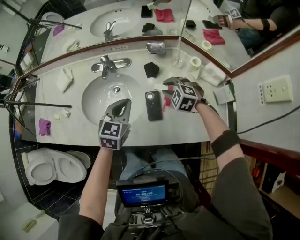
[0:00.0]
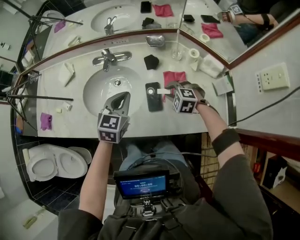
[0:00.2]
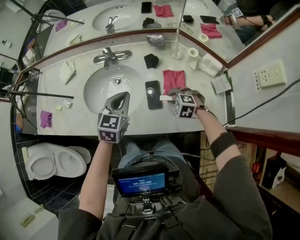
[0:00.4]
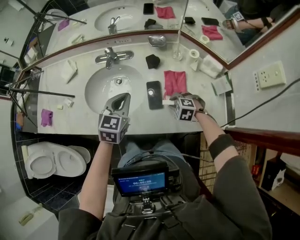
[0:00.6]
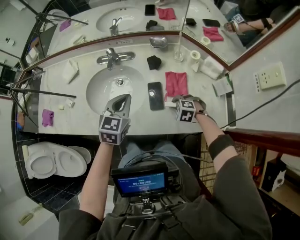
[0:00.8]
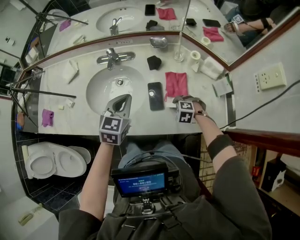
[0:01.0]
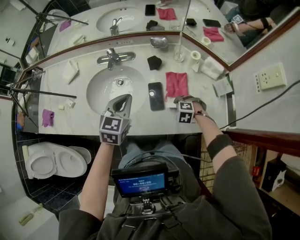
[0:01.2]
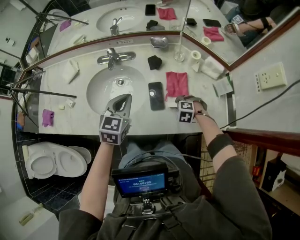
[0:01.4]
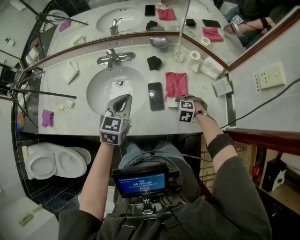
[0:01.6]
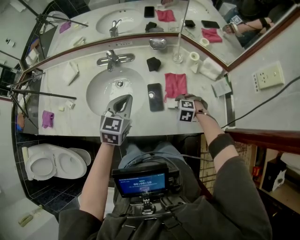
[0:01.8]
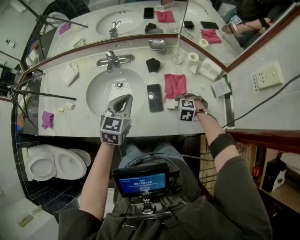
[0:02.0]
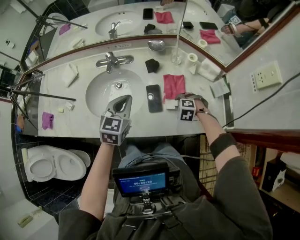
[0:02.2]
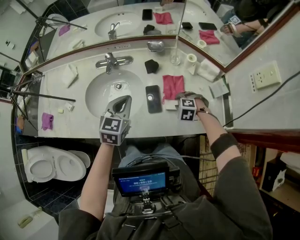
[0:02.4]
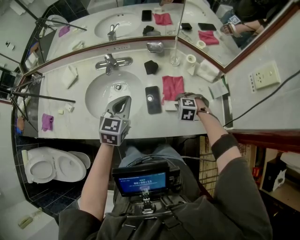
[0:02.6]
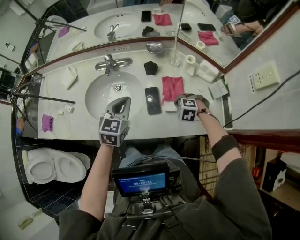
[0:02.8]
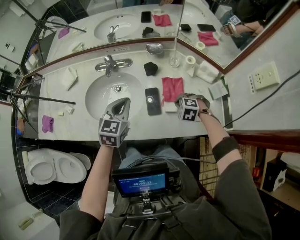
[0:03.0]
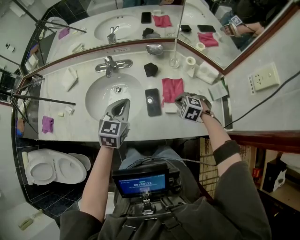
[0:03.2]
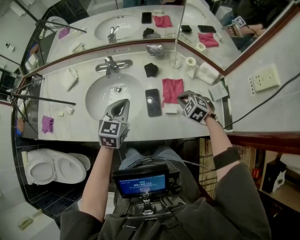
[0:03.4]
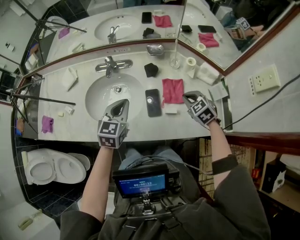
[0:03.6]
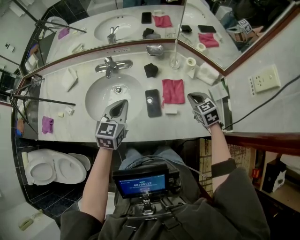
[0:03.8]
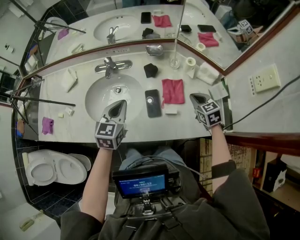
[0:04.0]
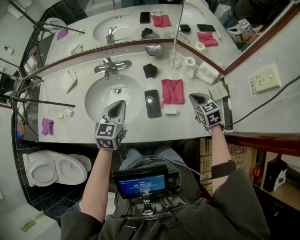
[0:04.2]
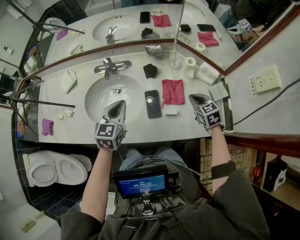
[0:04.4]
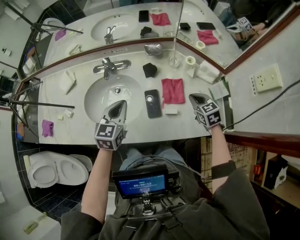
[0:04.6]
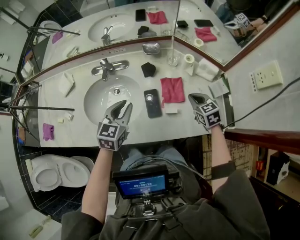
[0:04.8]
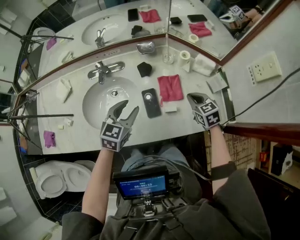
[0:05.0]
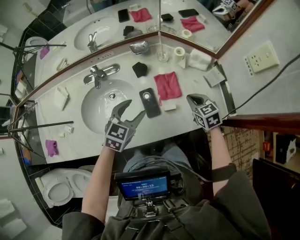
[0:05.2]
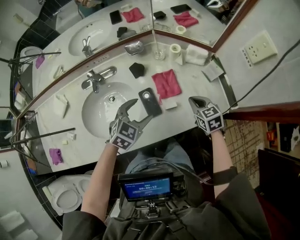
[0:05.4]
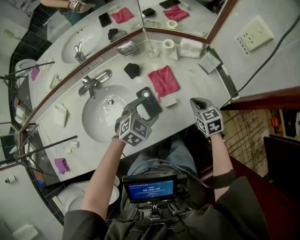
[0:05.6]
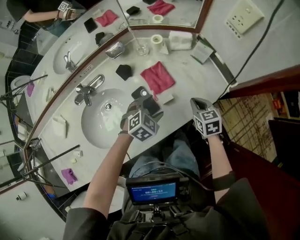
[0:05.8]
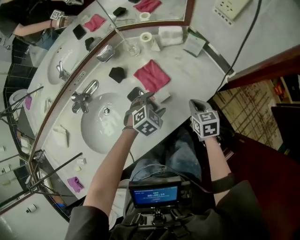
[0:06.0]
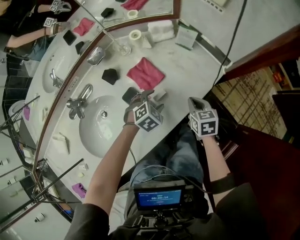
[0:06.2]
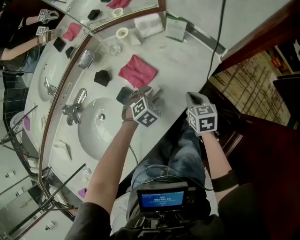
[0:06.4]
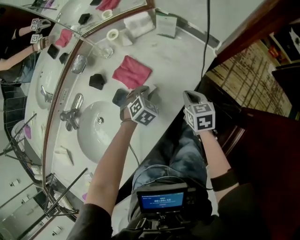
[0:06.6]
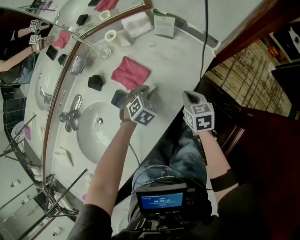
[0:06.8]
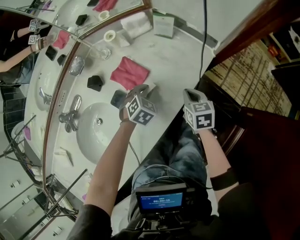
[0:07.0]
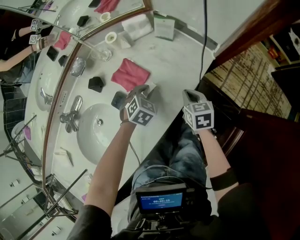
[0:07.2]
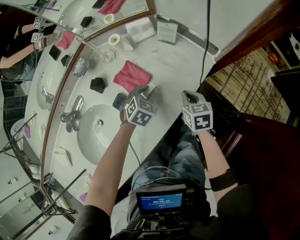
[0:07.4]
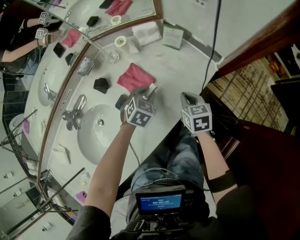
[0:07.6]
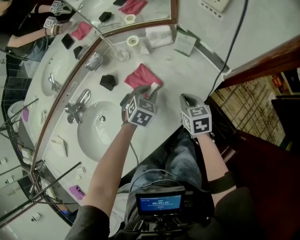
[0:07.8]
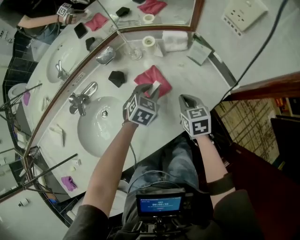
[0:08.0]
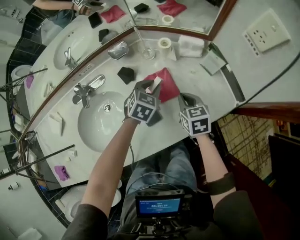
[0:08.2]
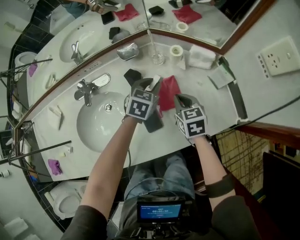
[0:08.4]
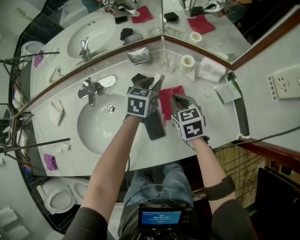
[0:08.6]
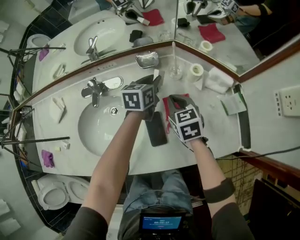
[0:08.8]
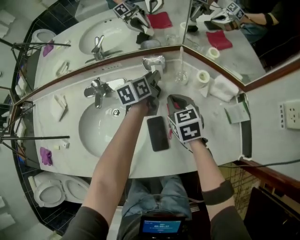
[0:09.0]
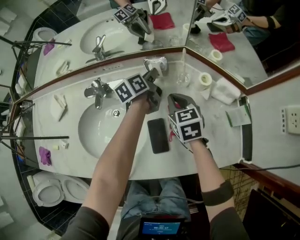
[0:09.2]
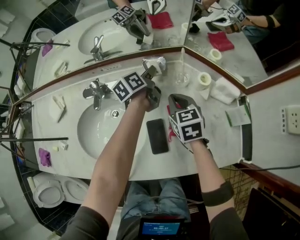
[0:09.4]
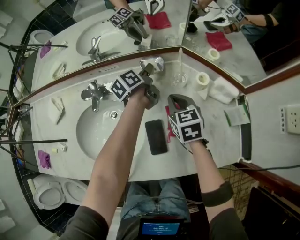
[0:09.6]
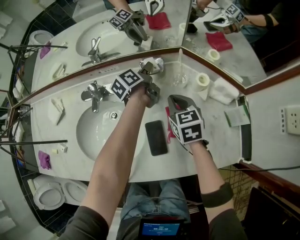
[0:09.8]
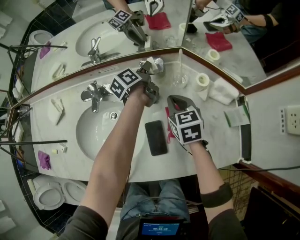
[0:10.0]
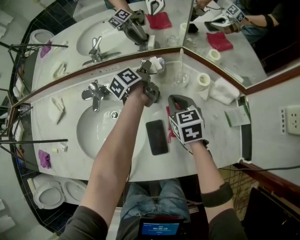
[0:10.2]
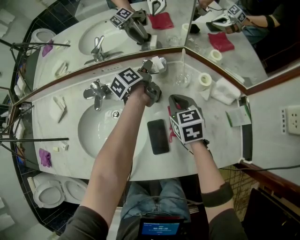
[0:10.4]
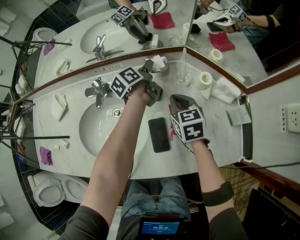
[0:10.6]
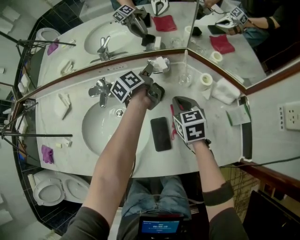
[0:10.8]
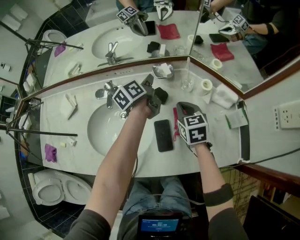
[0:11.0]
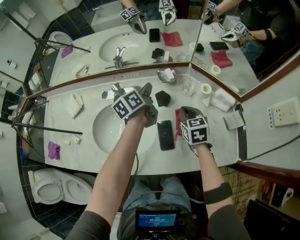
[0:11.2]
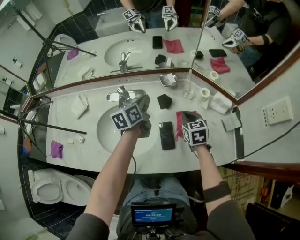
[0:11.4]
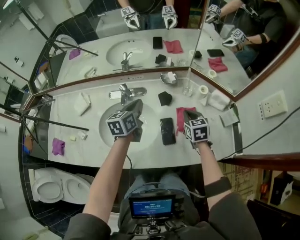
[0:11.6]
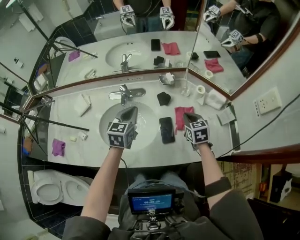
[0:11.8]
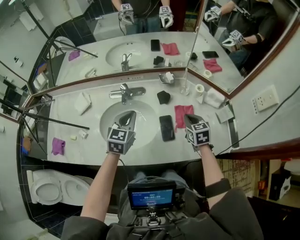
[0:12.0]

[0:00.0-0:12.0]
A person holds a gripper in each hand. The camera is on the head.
0:00.0 to 0:01.6: The right gripper moves roughly 20 cm, and turns by approximately 20 degrees, while the left gripper changes place by approximately 5 cm.
0:01.6 to 0:03.0: The right gripper travels upward by some 5 cm, and closes up.
0:03.0 to 0:04.4: The right gripper travels upward and to the right by about 10 cm, and twists about 50 degrees clockwise, seen from behind.
0:04.4 to 0:06.0: The right gripper moves roughly 20 cm, and rolls clockwise, seen from behind, by some 40 degrees; the left gripper ends up about 25 cm from where it was, points its fingers some 30 degrees further downward, and opens.
0:06.0 to 0:07.6: The left gripper is displaced forward by some 5 cm, moves approximately 10 cm downward and comes back, and closes.
0:07.6 to 0:09.0: The right gripper ends up approximately 35 cm from where it was, and rotates roughly 50 degrees; the left gripper changes place by roughly 35 cm, and rolls counterclockwise, seen from behind, by about 80 degrees.
0:09.0 to 0:10.4: The left gripper heads forward, covering approximately 5 cm, and changes its angle by approximately 30 degrees.
0:10.4 to 0:12.0: The right gripper goes about 15 cm backward and upward. Meanwhile the left gripper moves backward, upward and to the left, some 35 cm, rotates around the line of its fingers by about 70 degrees, clockwise from behind, and closes its fingers.

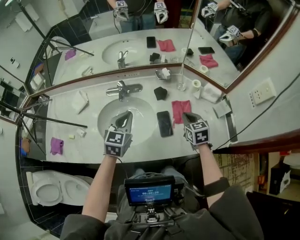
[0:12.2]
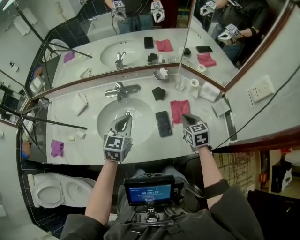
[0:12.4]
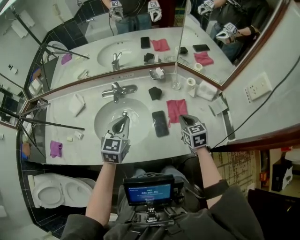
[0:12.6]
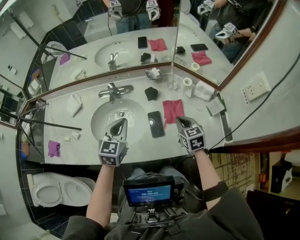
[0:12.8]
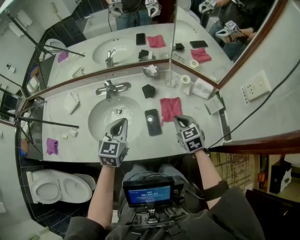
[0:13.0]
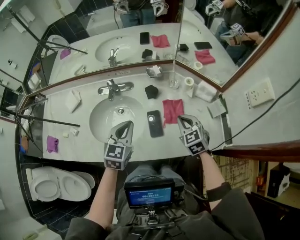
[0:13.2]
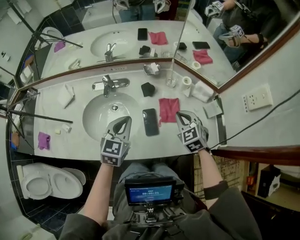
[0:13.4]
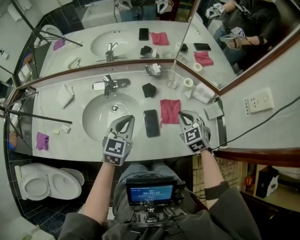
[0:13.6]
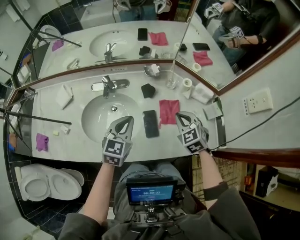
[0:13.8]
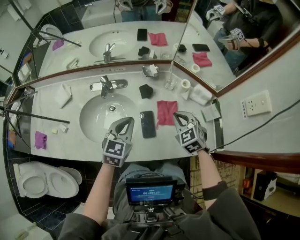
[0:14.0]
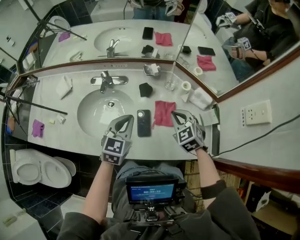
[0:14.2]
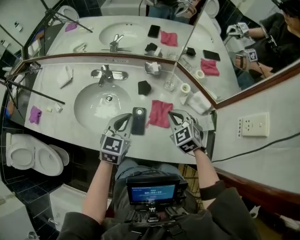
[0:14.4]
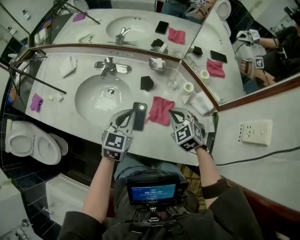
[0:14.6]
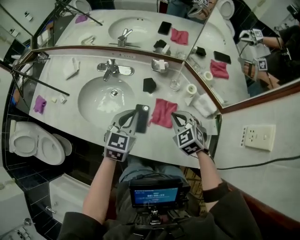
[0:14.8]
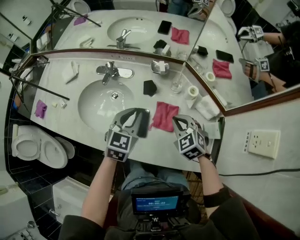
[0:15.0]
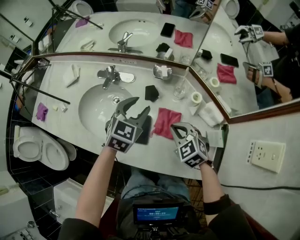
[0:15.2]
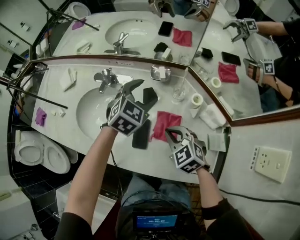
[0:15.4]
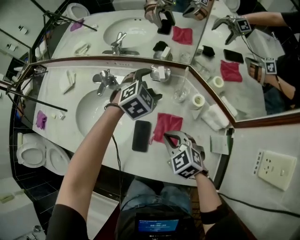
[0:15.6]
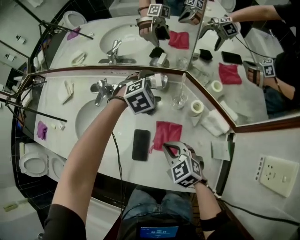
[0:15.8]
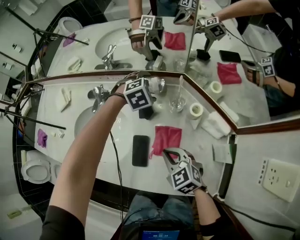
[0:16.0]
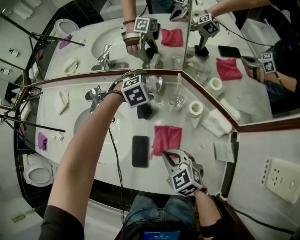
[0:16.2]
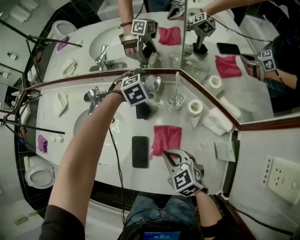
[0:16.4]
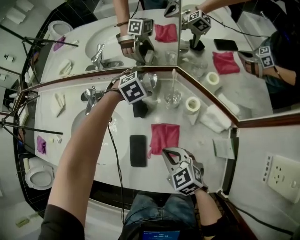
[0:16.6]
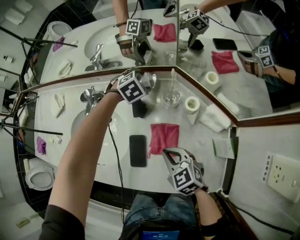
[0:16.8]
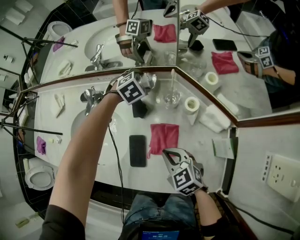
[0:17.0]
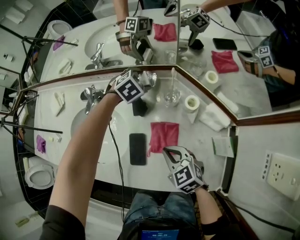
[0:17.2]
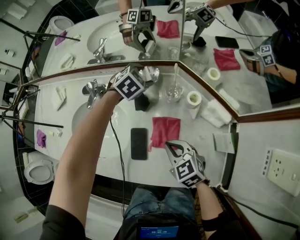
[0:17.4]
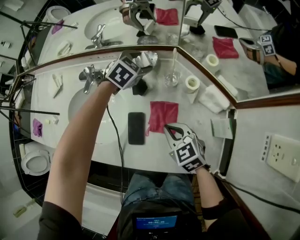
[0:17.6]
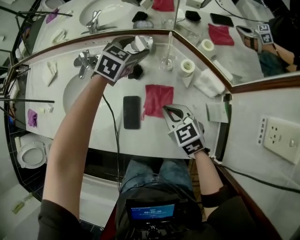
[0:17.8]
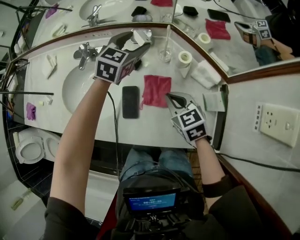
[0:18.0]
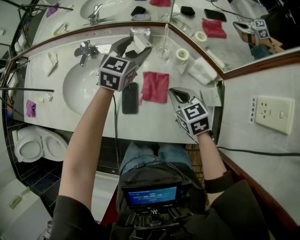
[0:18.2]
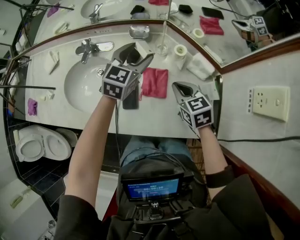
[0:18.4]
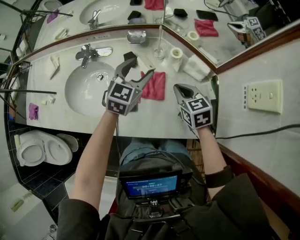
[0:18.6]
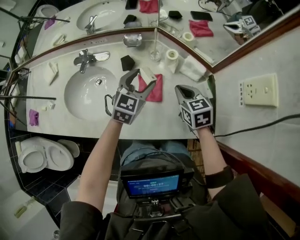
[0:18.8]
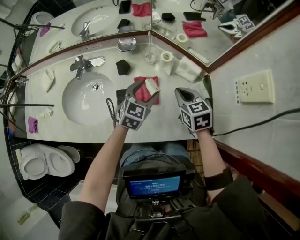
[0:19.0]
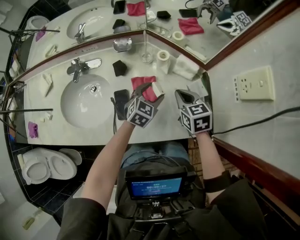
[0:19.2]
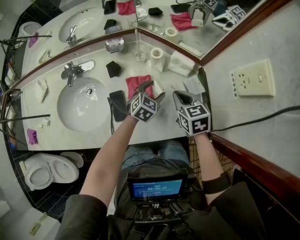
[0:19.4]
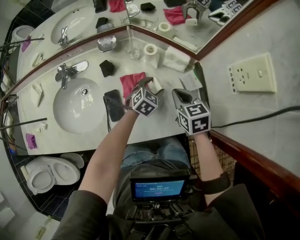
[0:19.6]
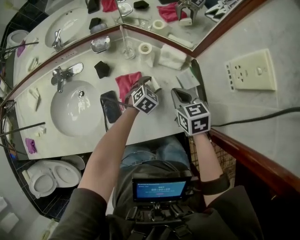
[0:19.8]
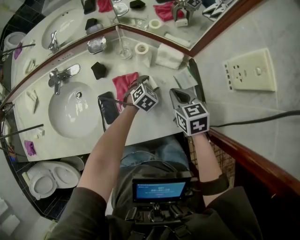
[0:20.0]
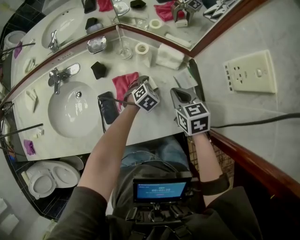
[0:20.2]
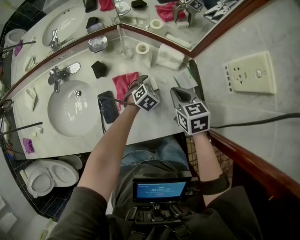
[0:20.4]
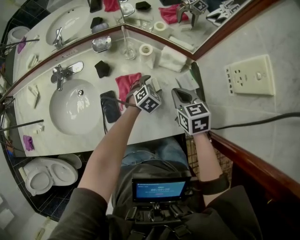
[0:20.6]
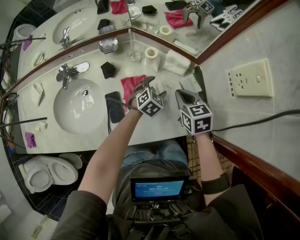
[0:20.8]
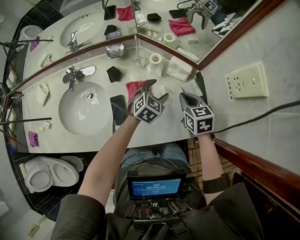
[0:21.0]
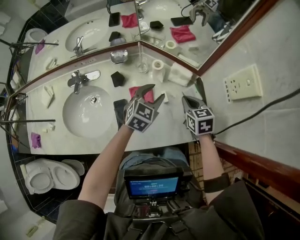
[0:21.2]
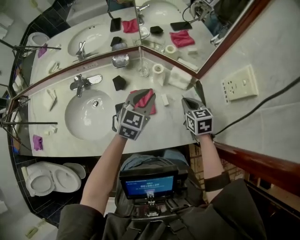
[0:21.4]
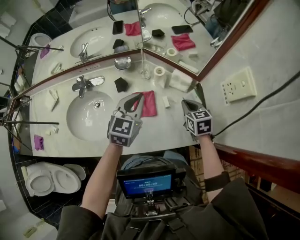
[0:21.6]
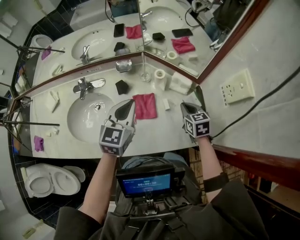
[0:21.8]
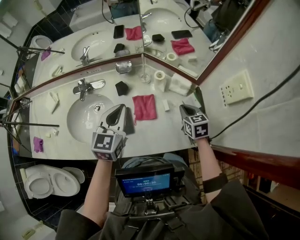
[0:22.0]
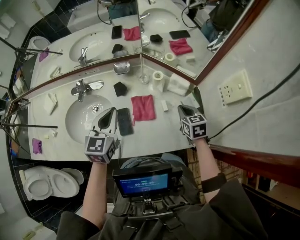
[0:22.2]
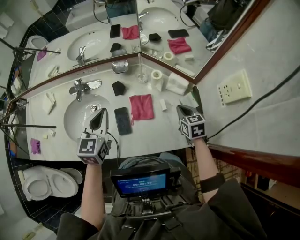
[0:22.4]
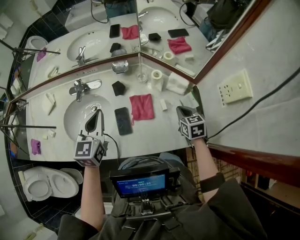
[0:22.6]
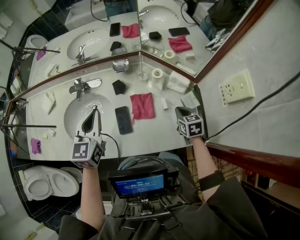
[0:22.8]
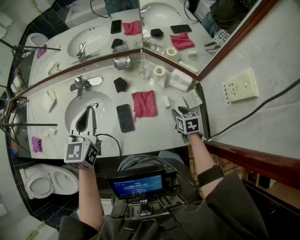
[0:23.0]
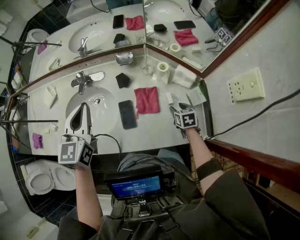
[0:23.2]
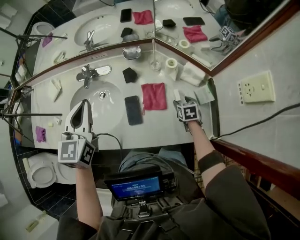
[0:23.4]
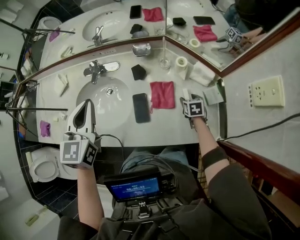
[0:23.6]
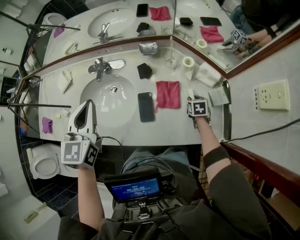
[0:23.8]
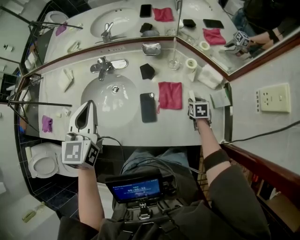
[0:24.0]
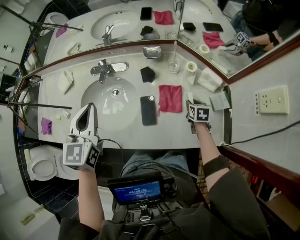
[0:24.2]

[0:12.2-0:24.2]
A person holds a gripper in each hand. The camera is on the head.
0:12.2 to 0:13.8: The right gripper turns by about 30 degrees. The left gripper goes approximately 10 cm to the right.
0:13.8 to 0:15.2: The left gripper travels to the right and forward by roughly 15 cm, and opens its fingers; the right gripper changes place by approximately 5 cm, and rotates roughly 30 degrees.
0:15.2 to 0:16.6: The left gripper is displaced forward, downward and to the right by roughly 30 cm, tilts its fingers some 40 degrees downward, and opens up; the right gripper is displaced downward by about 10 cm.
0:16.6 to 0:18.2: The right gripper heads to the right and upward, covering some 10 cm. The left gripper is displaced upward and backward by roughly 20 cm, and angles its fingers upward, by some 40 degrees.
0:18.2 to 0:19.8: The left gripper ends up about 30 cm from where it was, and rotates approximately 40 degrees, while the right gripper changes place by roughly 15 cm, and rotates about 30 degrees.
0:19.8 to 0:21.2: The left gripper travels upward by roughly 20 cm, and turns by approximately 20 degrees.
0:21.2 to 0:22.6: The left gripper travels to the left and upward by some 25 cm, swivels roughly 40 degrees, and closes its fingers.
0:22.6 to 0:24.2: The left gripper travels to the left by approximately 15 cm. The right gripper heads downward and to the left, covering approximately 15 cm, and opens and closes again.
